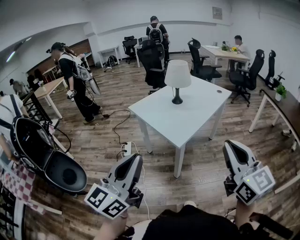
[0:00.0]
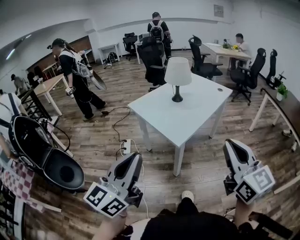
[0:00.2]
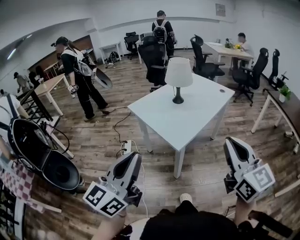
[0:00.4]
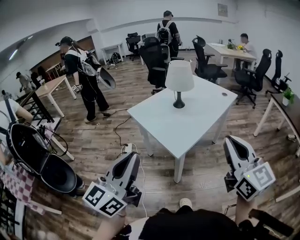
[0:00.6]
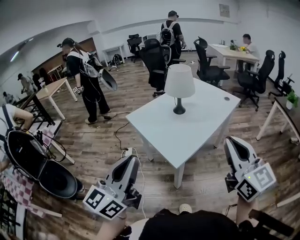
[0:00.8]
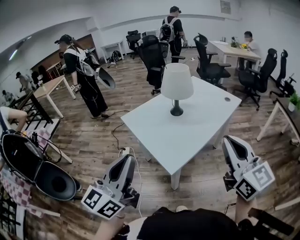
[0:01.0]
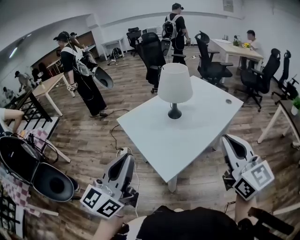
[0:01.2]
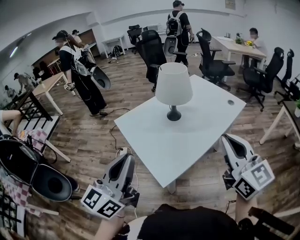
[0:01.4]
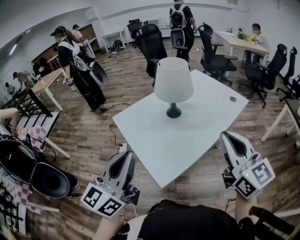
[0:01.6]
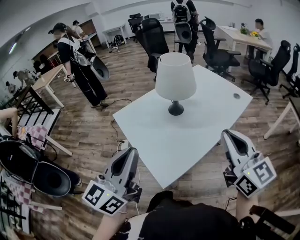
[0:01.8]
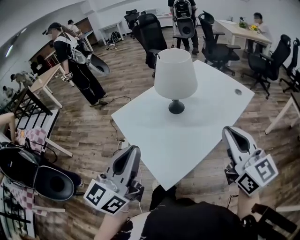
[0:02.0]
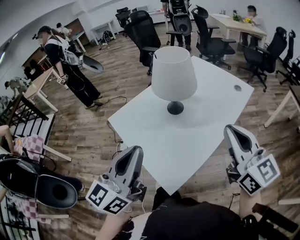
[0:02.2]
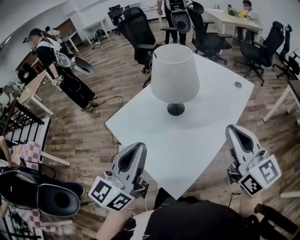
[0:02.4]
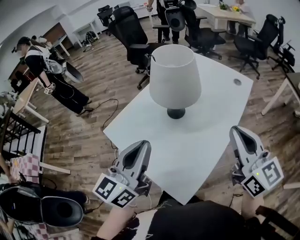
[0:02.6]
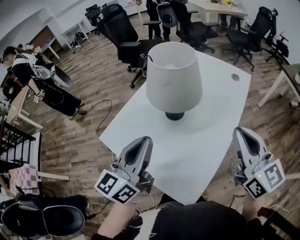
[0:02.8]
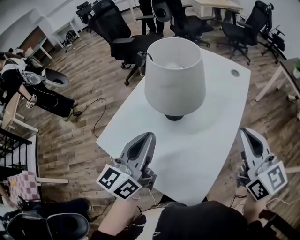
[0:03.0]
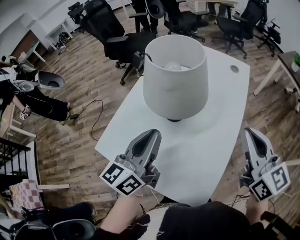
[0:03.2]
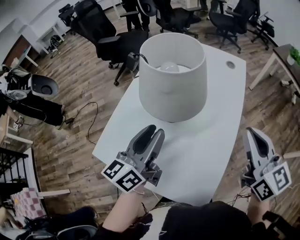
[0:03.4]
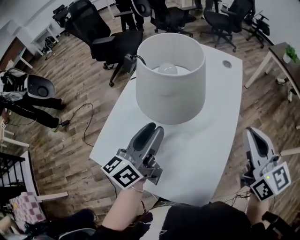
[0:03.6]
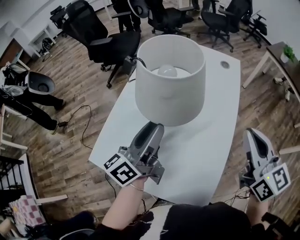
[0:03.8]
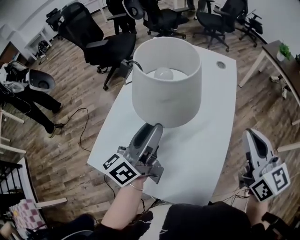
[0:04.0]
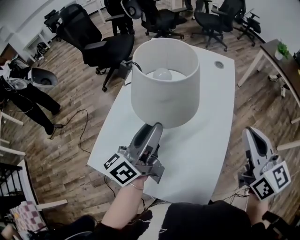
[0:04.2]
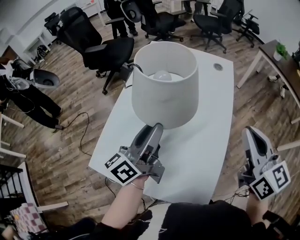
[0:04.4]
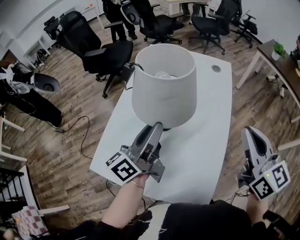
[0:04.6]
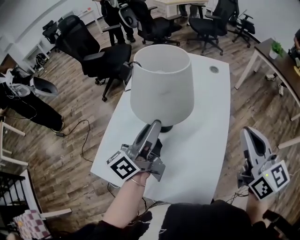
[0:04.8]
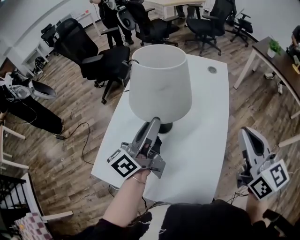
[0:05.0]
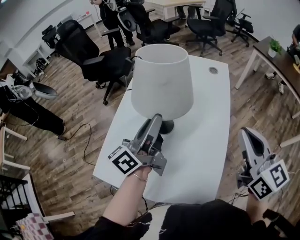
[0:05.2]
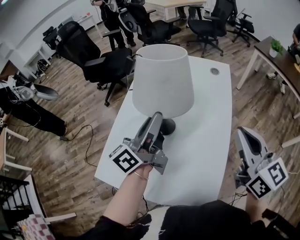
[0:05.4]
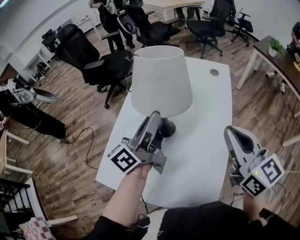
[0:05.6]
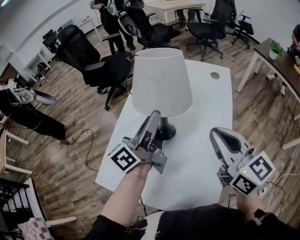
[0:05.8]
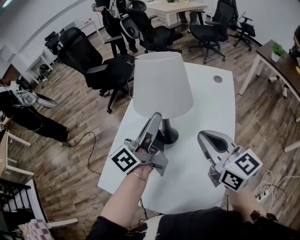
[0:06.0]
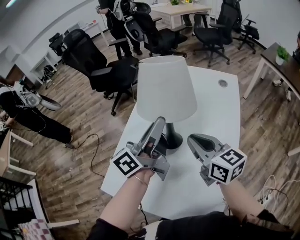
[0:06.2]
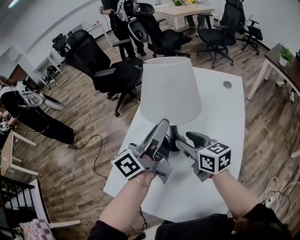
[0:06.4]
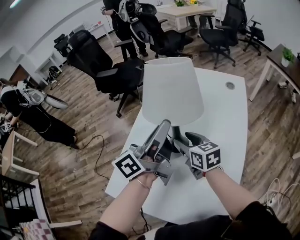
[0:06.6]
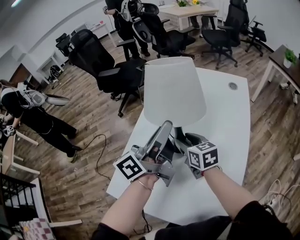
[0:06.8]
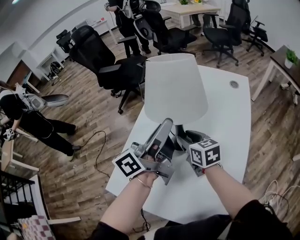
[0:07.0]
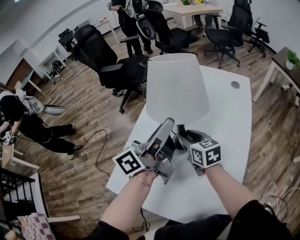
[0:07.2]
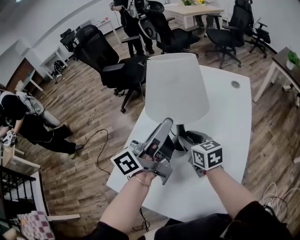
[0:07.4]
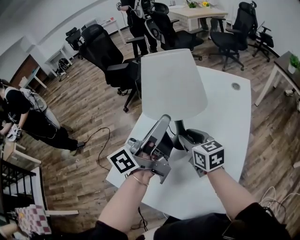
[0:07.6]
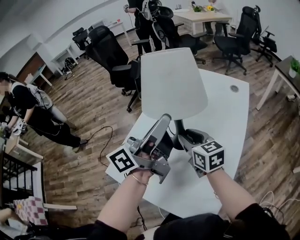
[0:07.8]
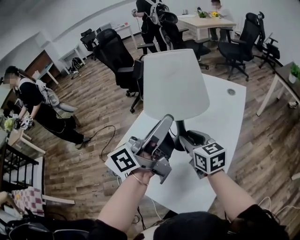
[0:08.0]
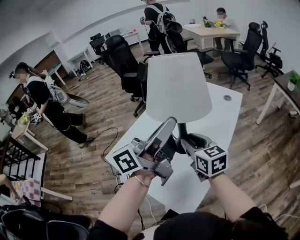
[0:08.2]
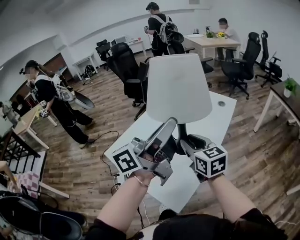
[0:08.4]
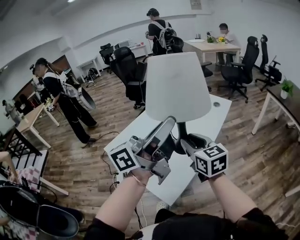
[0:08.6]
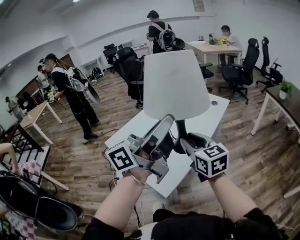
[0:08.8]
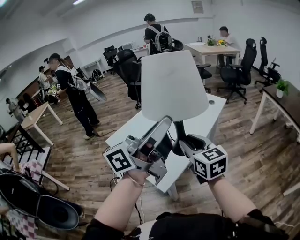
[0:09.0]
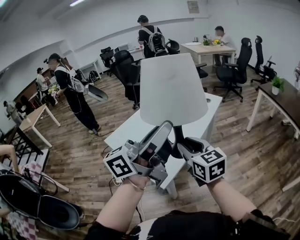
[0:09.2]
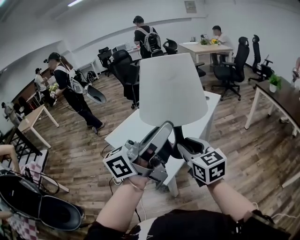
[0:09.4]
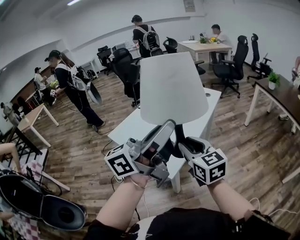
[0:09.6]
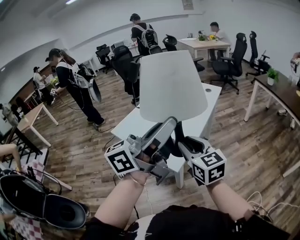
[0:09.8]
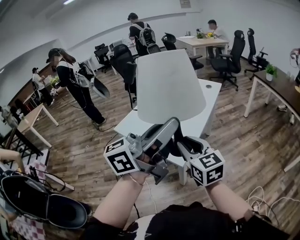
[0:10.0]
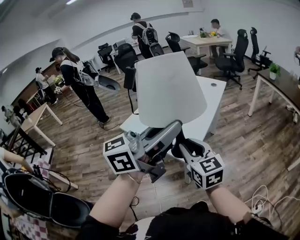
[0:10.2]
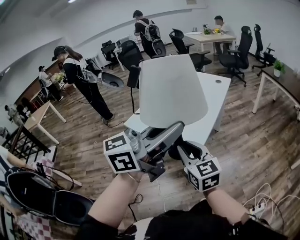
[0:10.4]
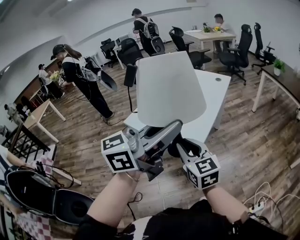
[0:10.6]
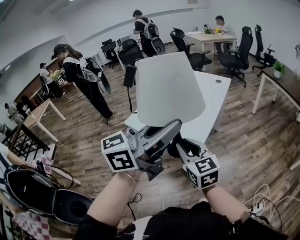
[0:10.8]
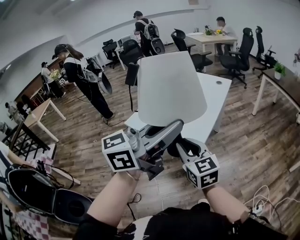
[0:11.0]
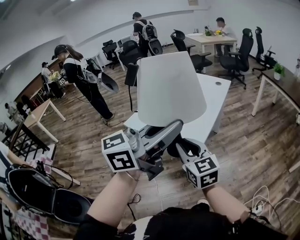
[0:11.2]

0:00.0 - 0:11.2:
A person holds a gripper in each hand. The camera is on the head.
0:00.0 - 0:01.6: Both grippers move forward, approximately 30 cm.
0:01.6 - 0:03.2: The right gripper ends up roughly 20 cm from where it was, and turns by roughly 30 degrees; the left gripper changes place by about 35 cm, and changes its angle by roughly 40 degrees.
0:03.2 - 0:04.8: The left gripper is displaced forward by some 10 cm, swivels some 30 degrees, and opens.
0:04.8 - 0:06.4: The left gripper shifts about 10 cm forward. The right gripper goes approximately 30 cm to the left, downward and forward, changes its angle by about 30 degrees, and opens its fingers.
0:06.4 - 0:08.0: The left gripper travels backward and upward by some 15 cm, while the right gripper goes about 5 cm backward.
0:08.0 - 0:09.6: The grippers both shift backward and to the right by about 35 cm.
0:09.6 - 0:11.2: The right gripper moves backward and to the left, about 15 cm. The left gripper moves backward, about 10 cm, and rotates about 20 degrees.

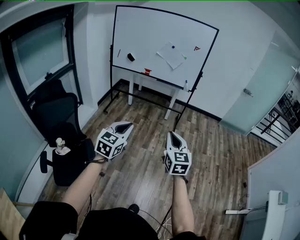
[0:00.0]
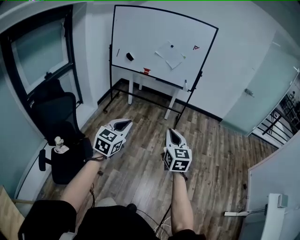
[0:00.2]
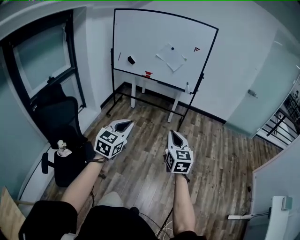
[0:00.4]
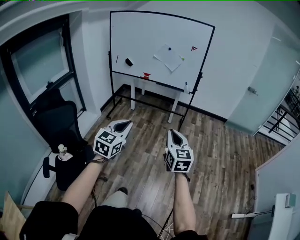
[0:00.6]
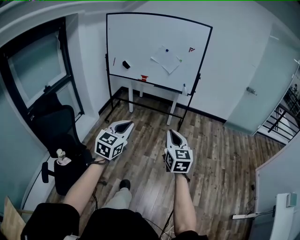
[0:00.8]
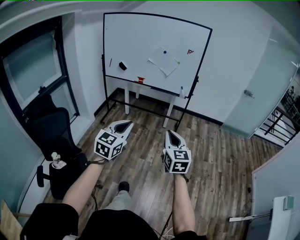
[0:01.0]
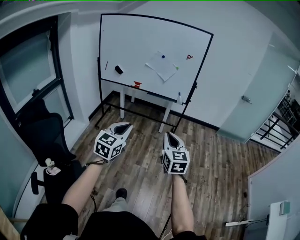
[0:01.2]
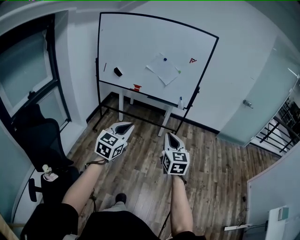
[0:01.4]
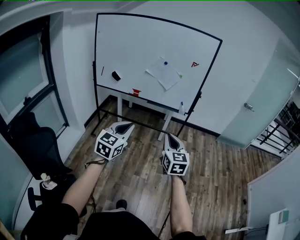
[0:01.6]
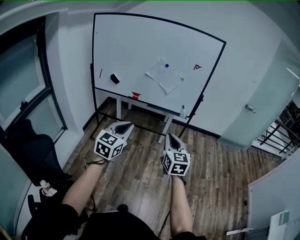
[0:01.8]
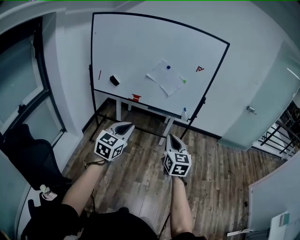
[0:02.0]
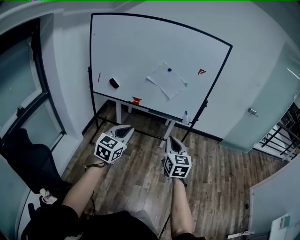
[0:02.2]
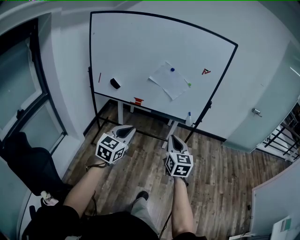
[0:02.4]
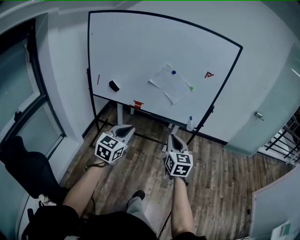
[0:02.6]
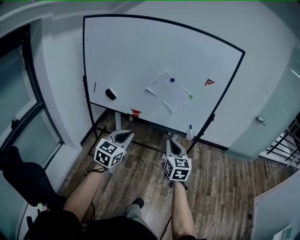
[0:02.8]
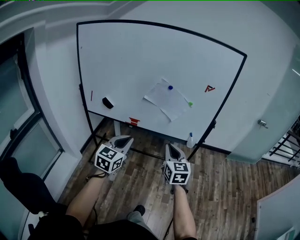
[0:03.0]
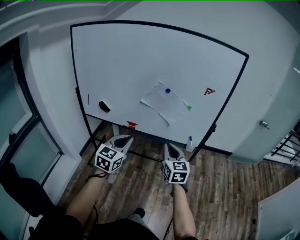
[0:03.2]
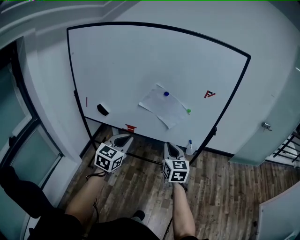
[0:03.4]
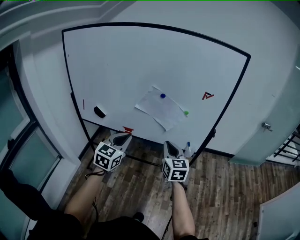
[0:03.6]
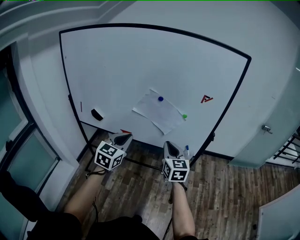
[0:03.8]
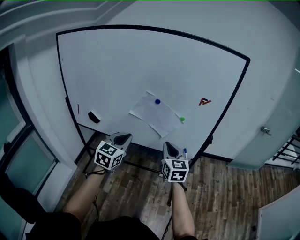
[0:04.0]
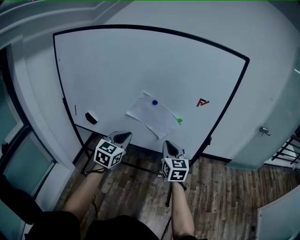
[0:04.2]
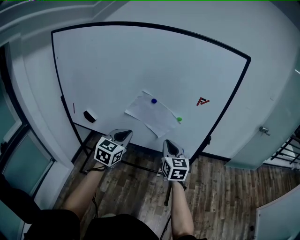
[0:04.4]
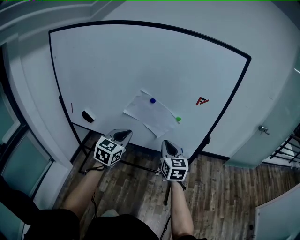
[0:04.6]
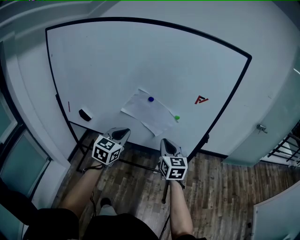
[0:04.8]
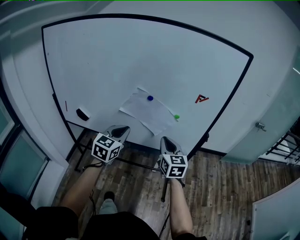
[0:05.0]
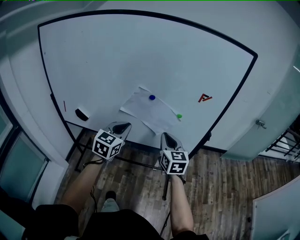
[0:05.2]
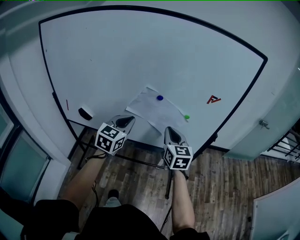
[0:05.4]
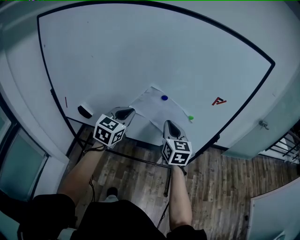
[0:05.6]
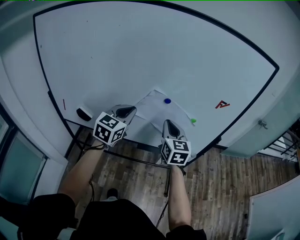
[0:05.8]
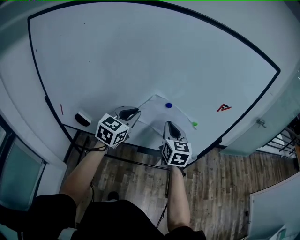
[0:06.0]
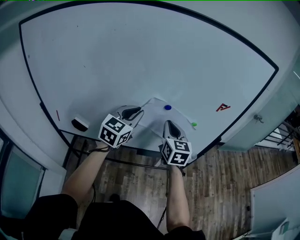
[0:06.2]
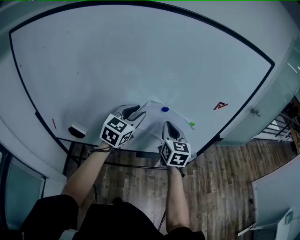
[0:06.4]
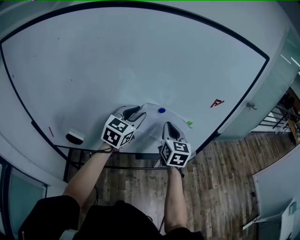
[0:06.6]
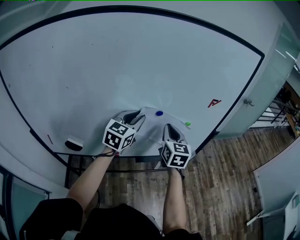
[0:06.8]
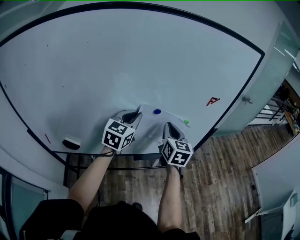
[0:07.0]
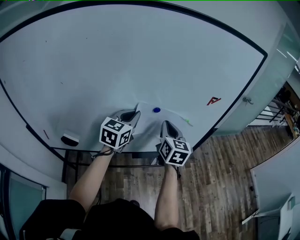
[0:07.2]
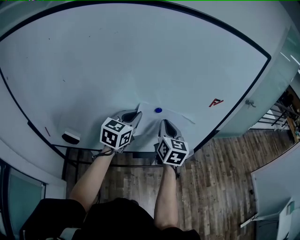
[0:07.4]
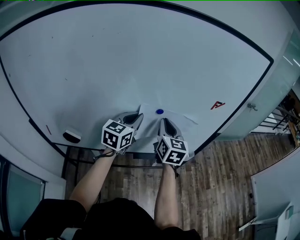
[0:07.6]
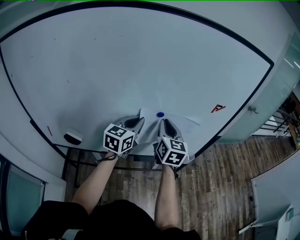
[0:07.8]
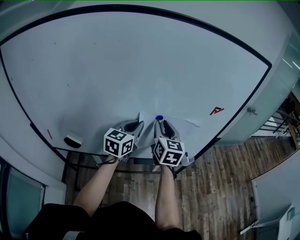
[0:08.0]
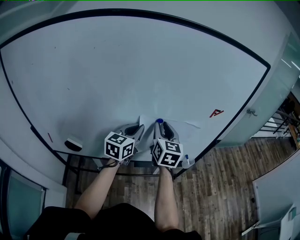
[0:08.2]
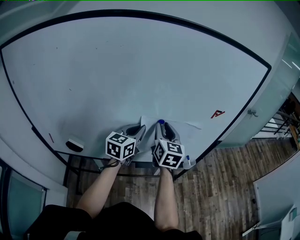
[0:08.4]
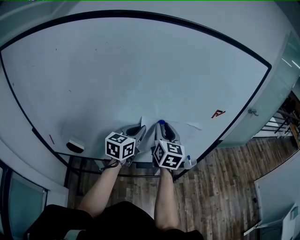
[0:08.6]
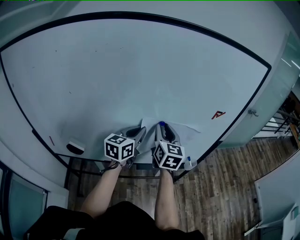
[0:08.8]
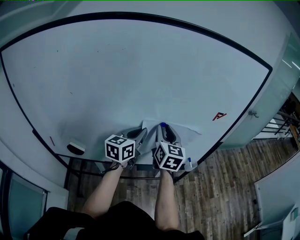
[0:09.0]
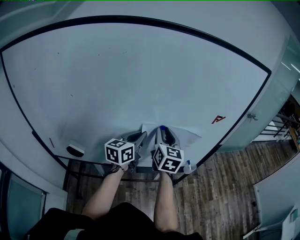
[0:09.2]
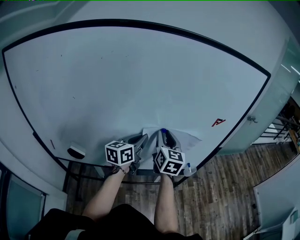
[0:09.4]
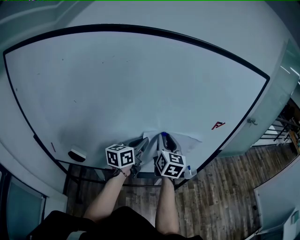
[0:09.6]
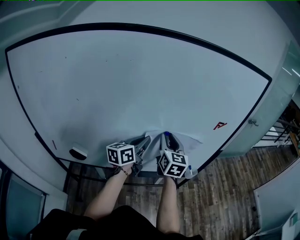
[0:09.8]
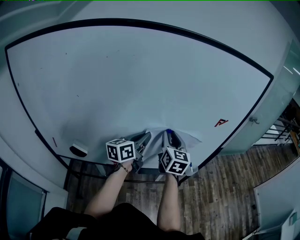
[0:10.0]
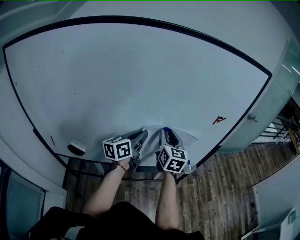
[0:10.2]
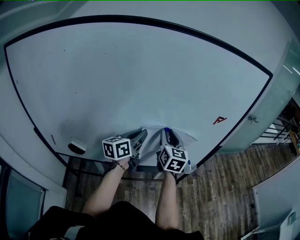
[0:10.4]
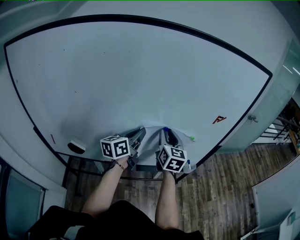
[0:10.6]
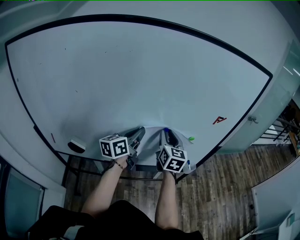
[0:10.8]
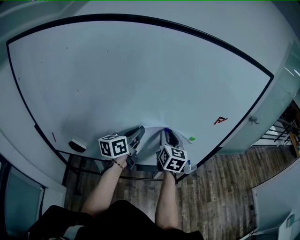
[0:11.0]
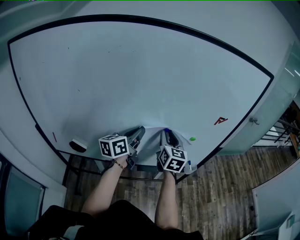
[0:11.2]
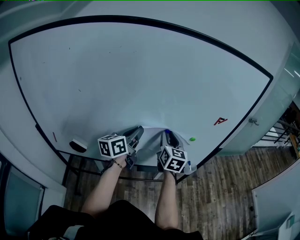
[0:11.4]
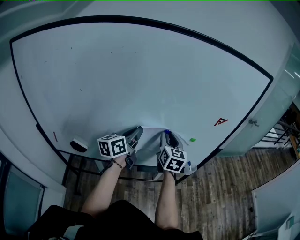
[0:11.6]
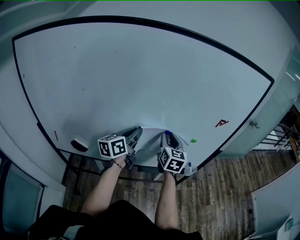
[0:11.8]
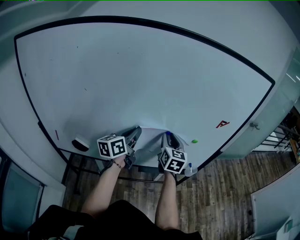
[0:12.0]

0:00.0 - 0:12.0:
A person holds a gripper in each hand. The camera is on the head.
0:00.0 - 0:01.6: The two grippers go approximately 35 cm forward.
0:01.6 - 0:03.0: The two grippers go roughly 35 cm forward.
0:03.0 - 0:04.4: The two grippers go some 20 cm forward.
0:04.4 - 0:06.0: Both grippers travel together forward and to the left, about 20 cm.
0:06.0 - 0:07.6: The left gripper heads forward, covering roughly 5 cm, while the right gripper ends up about 5 cm from where it was.
0:07.6 - 0:09.0: The right gripper opens.
0:09.0 - 0:10.4: The grippers move only a little.
0:10.4 - 0:12.0: The left gripper moves to the left, about 5 cm.

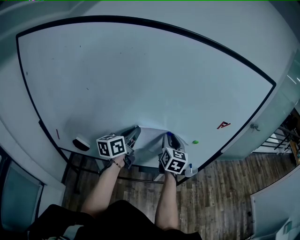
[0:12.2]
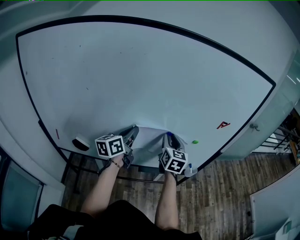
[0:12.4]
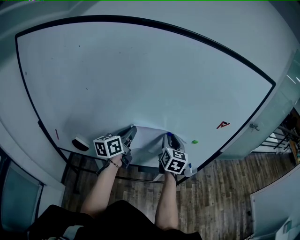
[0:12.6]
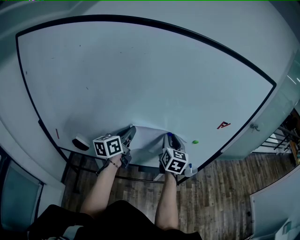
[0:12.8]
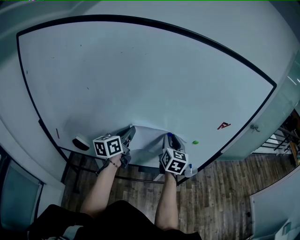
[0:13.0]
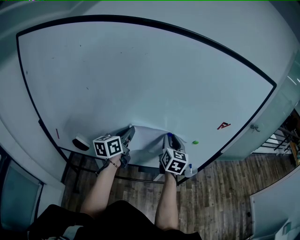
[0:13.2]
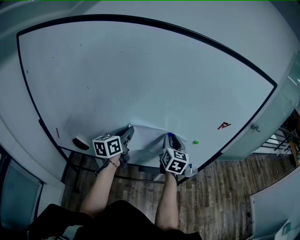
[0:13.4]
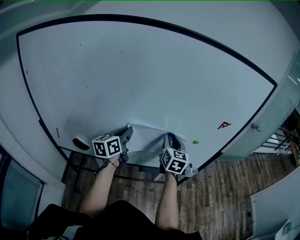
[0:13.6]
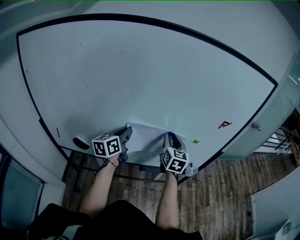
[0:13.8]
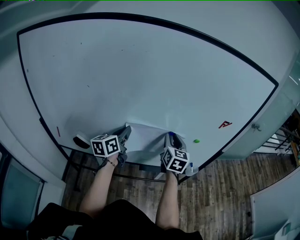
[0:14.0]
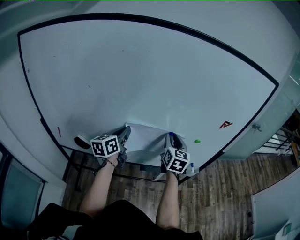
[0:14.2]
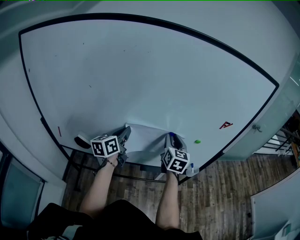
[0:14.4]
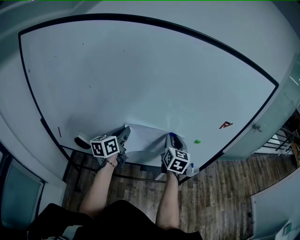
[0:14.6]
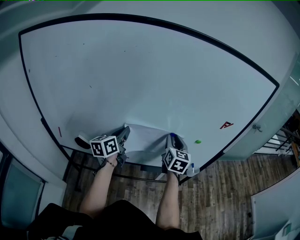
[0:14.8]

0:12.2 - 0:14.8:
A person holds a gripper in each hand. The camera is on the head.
0:12.2 - 0:13.4: The grippers make only small movements.
0:13.4 - 0:14.8: The grippers move only a little.
